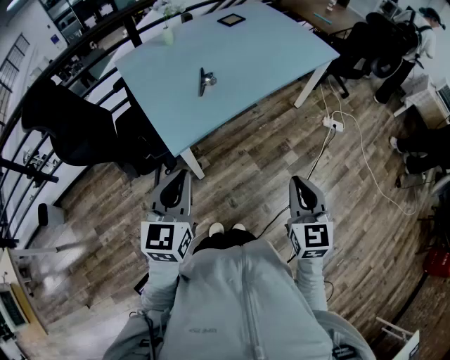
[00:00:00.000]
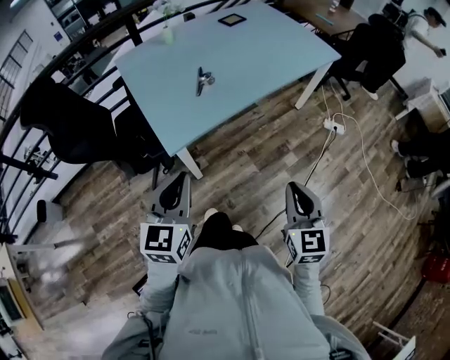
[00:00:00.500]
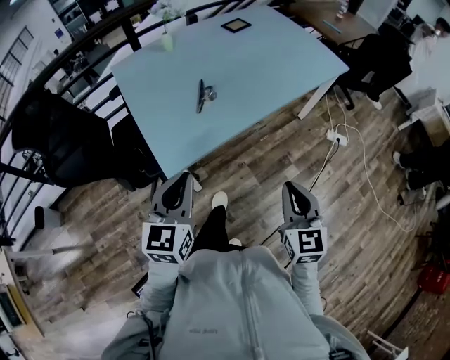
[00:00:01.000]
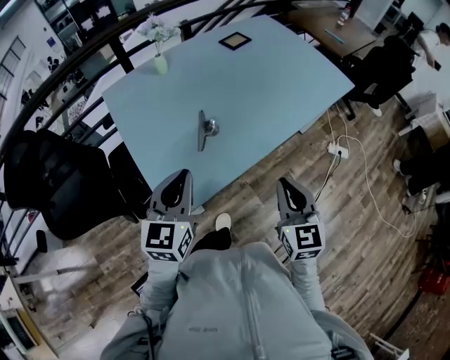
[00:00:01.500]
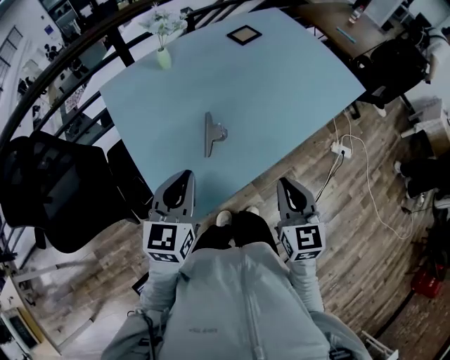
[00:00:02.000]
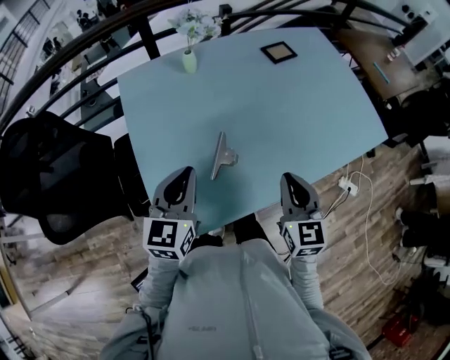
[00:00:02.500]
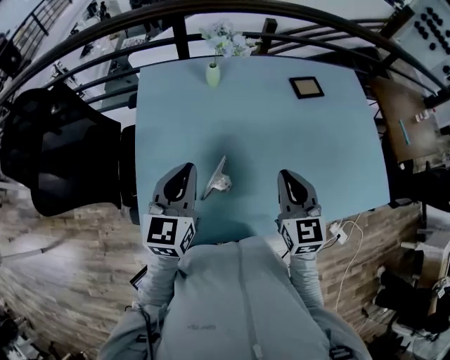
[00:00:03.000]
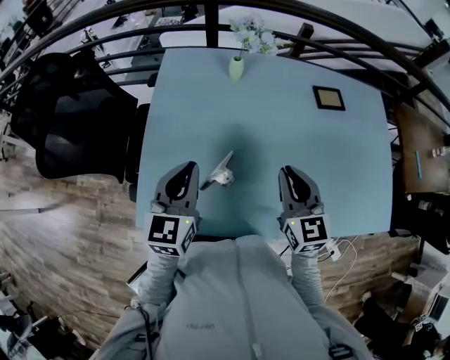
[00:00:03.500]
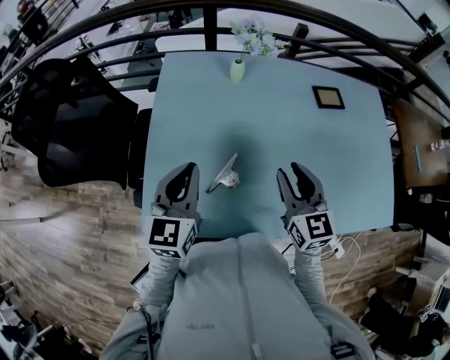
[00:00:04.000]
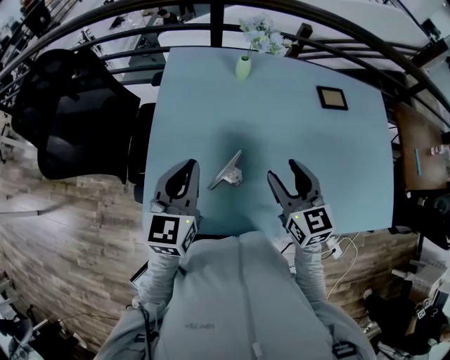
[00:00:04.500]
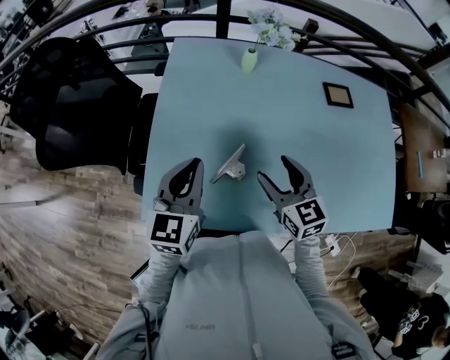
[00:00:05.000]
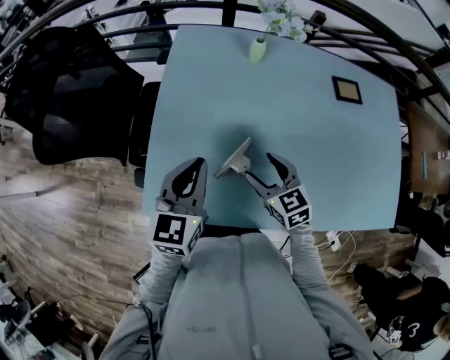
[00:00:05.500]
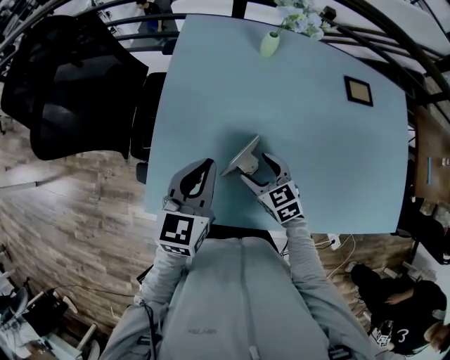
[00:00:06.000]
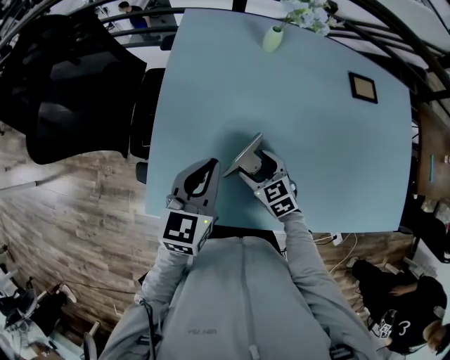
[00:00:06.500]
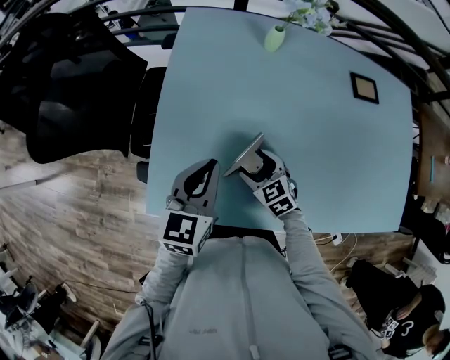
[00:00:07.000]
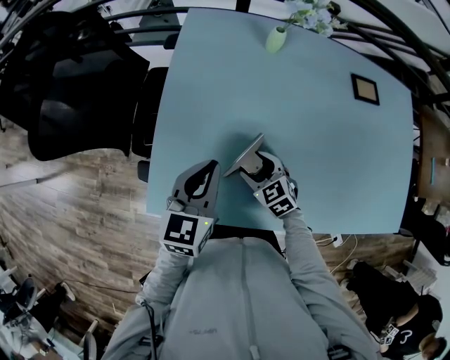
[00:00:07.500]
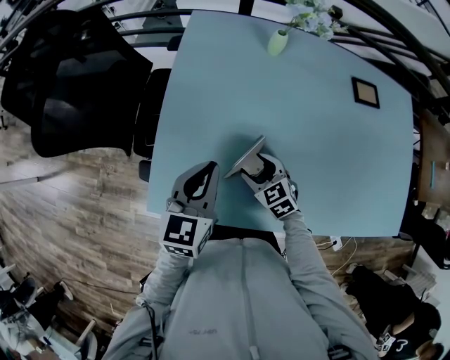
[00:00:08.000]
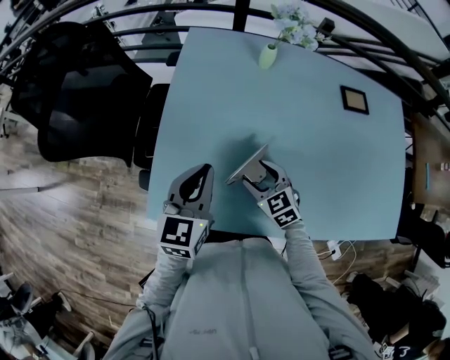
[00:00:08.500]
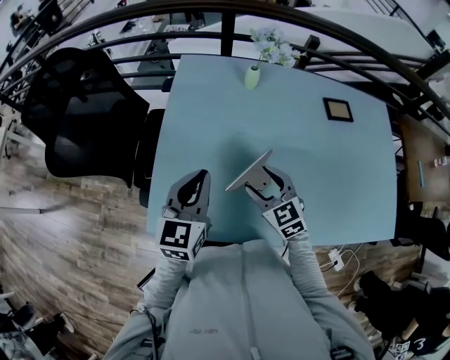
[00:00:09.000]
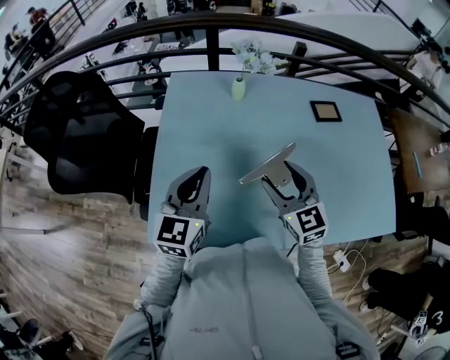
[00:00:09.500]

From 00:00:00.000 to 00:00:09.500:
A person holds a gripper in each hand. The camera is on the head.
From 00:00:00.000 to 00:00:02.000: The two grippers go approximately 30 cm forward.
From 00:00:02.000 to 00:00:04.000: The right gripper changes place by about 25 cm, and swivels roughly 40 degrees. The left gripper changes place by about 10 cm, and changes its angle by roughly 40 degrees.
From 00:00:04.000 to 00:00:05.500: The right gripper is displaced downward and to the left by about 15 cm, swivels roughly 30 degrees, and opens its fingers.
From 00:00:05.500 to 00:00:07.500: The right gripper heads downward, covering some 10 cm, while the left gripper is displaced downward by some 5 cm.
From 00:00:07.500 to 00:00:09.500: The left gripper is displaced upward by approximately 10 cm. The right gripper shifts some 25 cm upward and to the right, and swivels some 30 degrees.

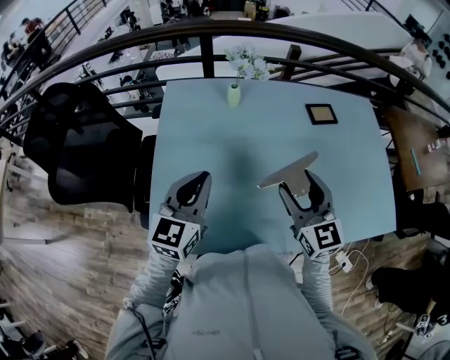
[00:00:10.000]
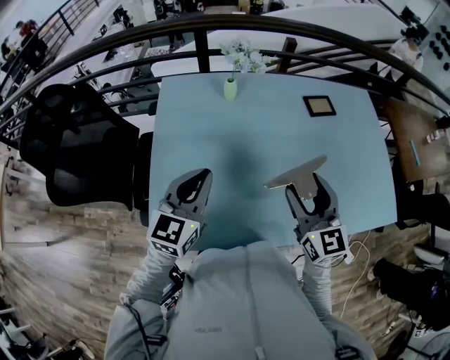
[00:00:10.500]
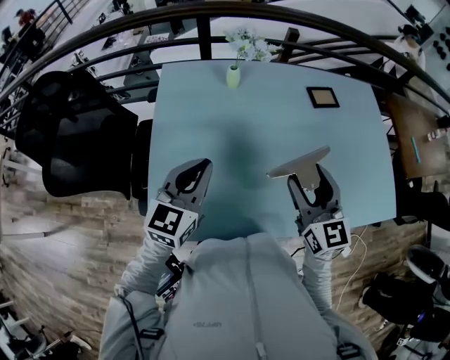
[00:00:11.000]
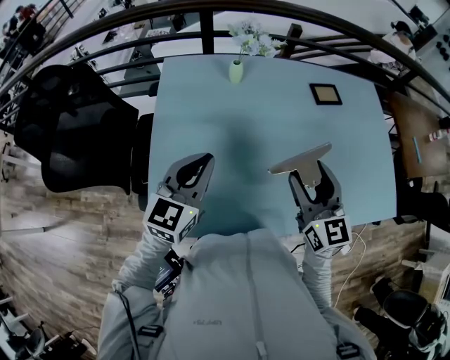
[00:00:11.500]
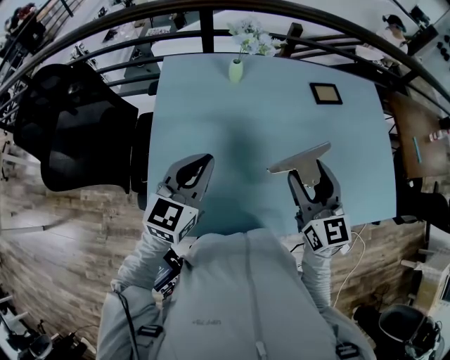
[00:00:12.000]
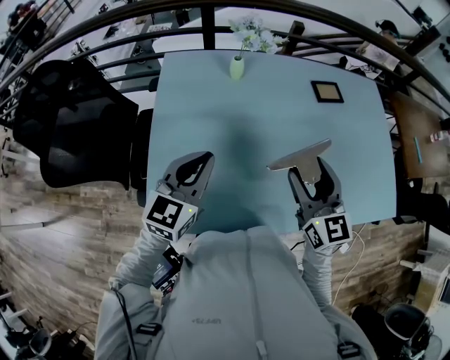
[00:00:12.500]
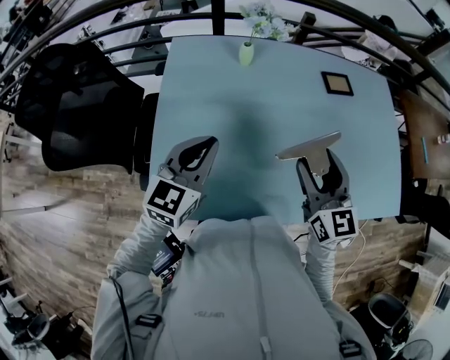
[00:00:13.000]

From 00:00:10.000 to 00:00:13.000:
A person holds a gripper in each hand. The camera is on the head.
From 00:00:10.000 to 00:00:11.500: The grippers move only a little.
From 00:00:11.500 to 00:00:13.000: The two grippers keep their place.

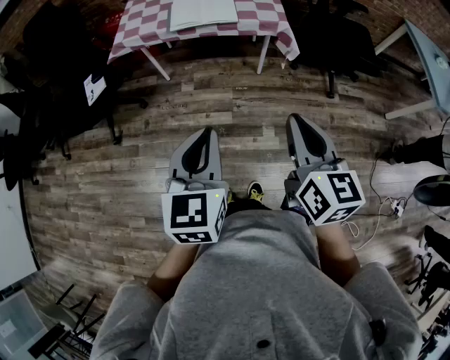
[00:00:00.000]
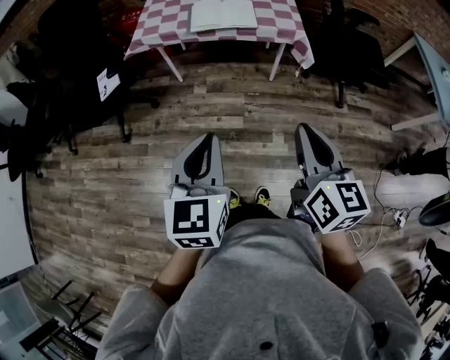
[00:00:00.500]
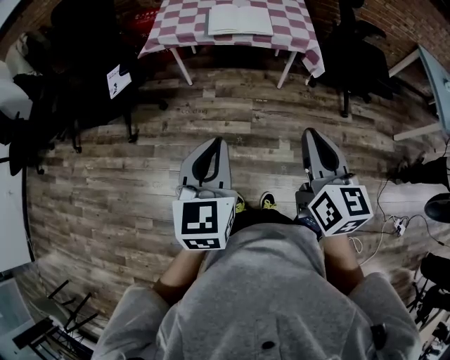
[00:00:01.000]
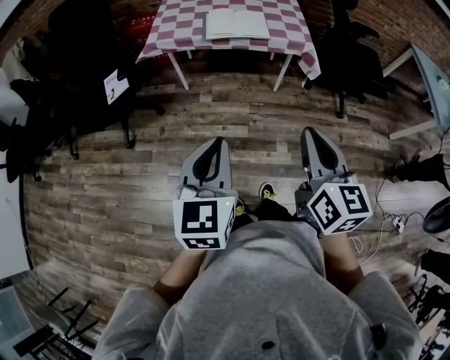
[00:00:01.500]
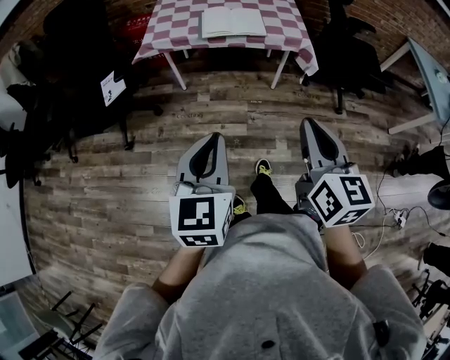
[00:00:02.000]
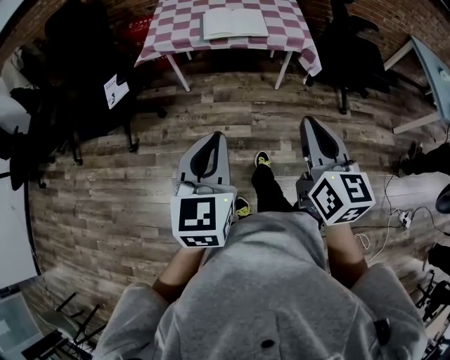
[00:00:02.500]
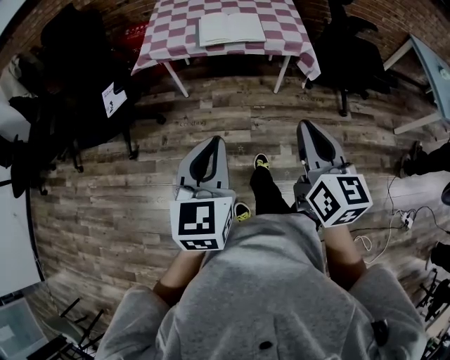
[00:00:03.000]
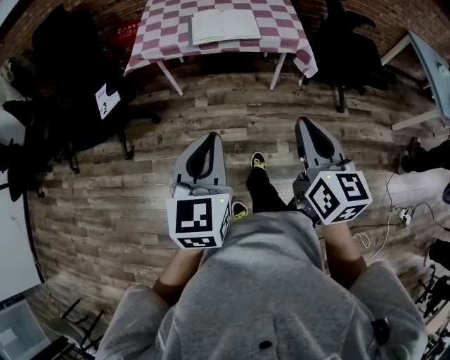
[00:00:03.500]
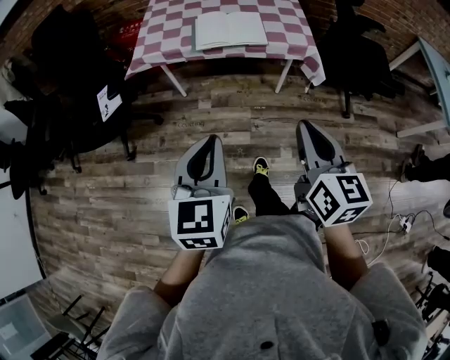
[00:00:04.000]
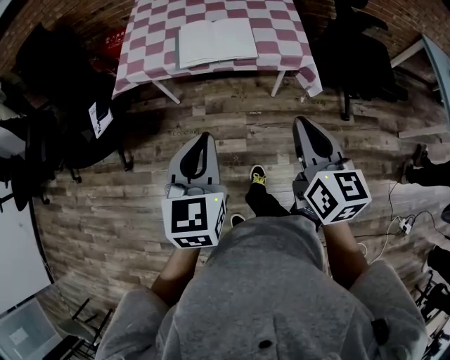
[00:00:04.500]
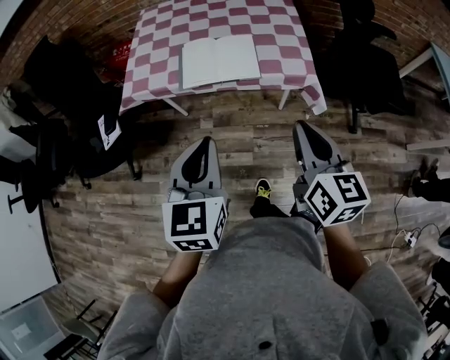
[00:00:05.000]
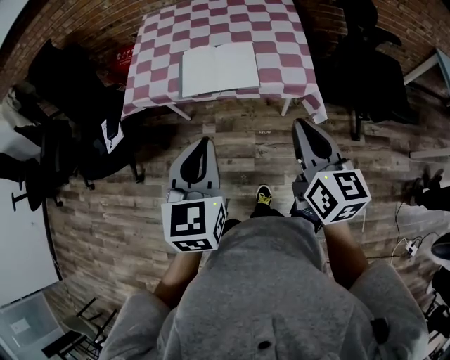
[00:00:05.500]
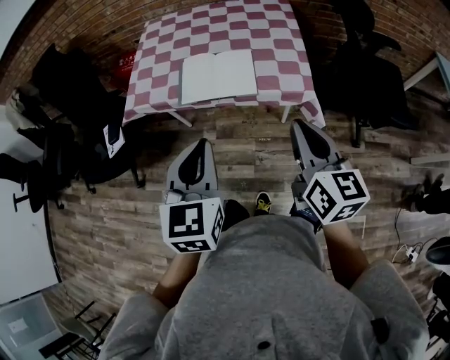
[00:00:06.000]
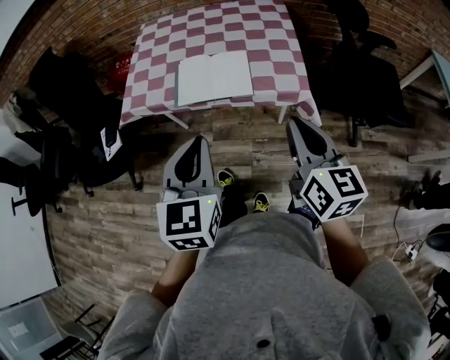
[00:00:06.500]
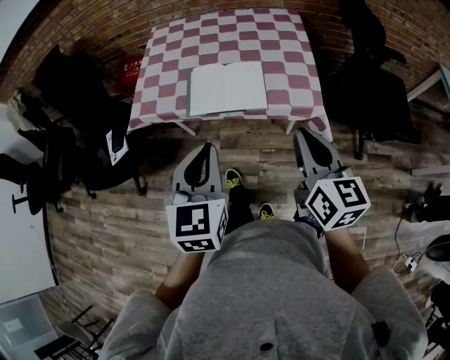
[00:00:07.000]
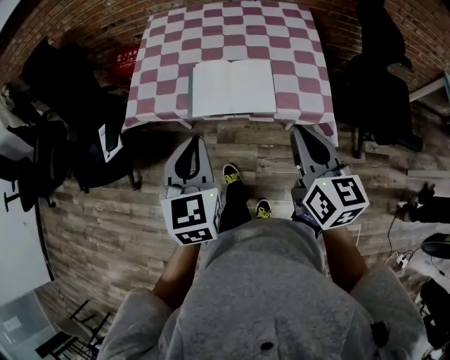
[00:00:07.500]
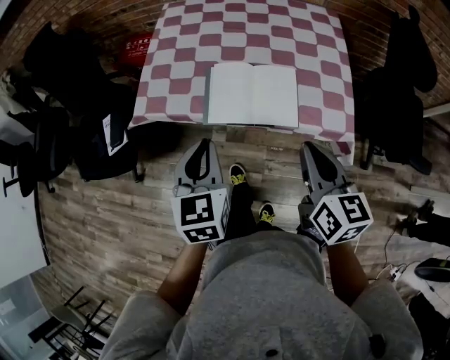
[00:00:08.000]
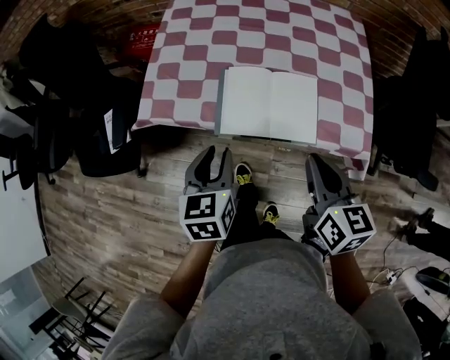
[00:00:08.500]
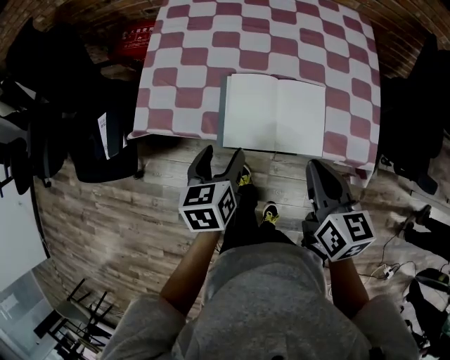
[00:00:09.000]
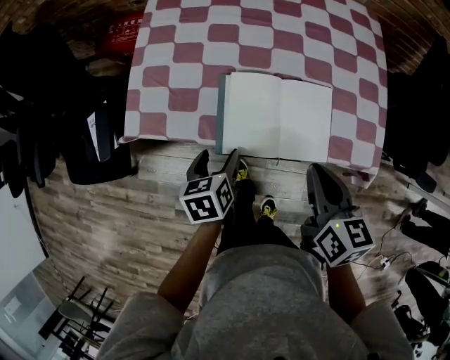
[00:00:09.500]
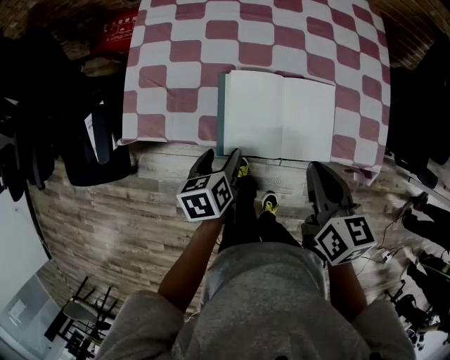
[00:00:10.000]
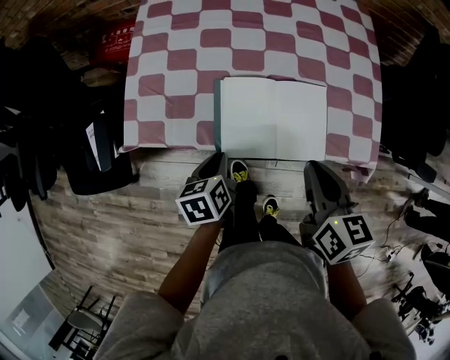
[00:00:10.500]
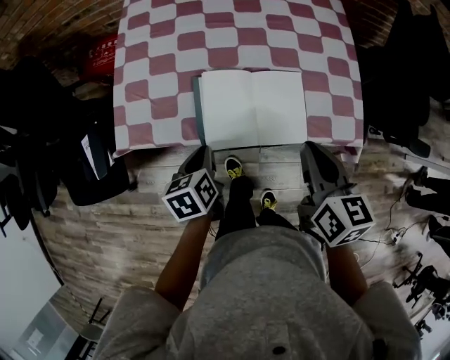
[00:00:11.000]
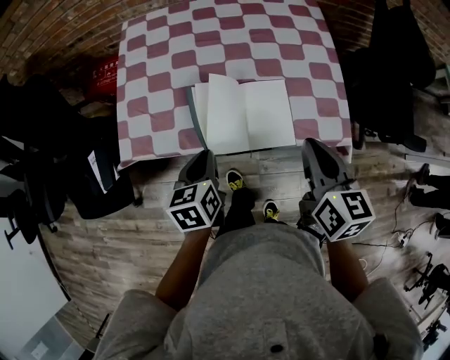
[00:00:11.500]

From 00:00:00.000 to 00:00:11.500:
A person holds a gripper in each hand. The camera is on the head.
From 00:00:00.000 to 00:00:02.000: Both grippers move to the left, about 10 cm.
From 00:00:02.000 to 00:00:04.000: Both grippers travel together forward, about 10 cm.
From 00:00:04.000 to 00:00:06.000: Both grippers travel together forward and to the right, approximately 25 cm.
From 00:00:06.000 to 00:00:07.500: Both grippers move forward and to the left, some 10 cm.
From 00:00:07.500 to 00:00:09.500: The left gripper heads downward and forward, covering roughly 30 cm, turns by roughly 40 degrees, and opens its fingers. The right gripper moves forward, downward and to the left, some 20 cm, and changes its angle by roughly 20 degrees.
From 00:00:09.500 to 00:00:11.500: The left gripper is displaced upward by about 10 cm, and closes up. Meanwhile the right gripper is displaced upward and to the right by some 10 cm.

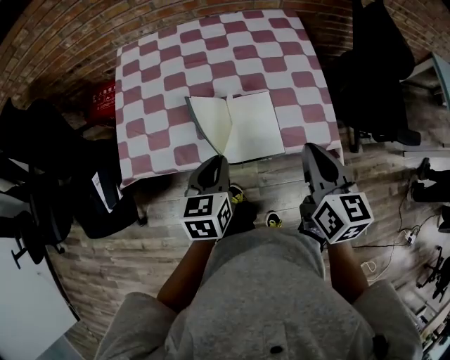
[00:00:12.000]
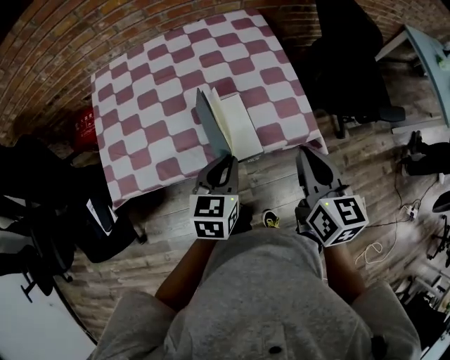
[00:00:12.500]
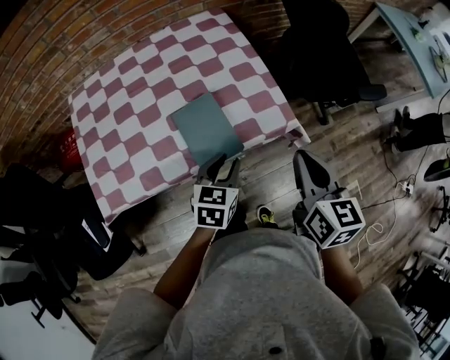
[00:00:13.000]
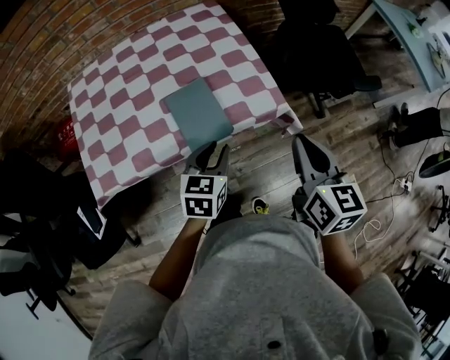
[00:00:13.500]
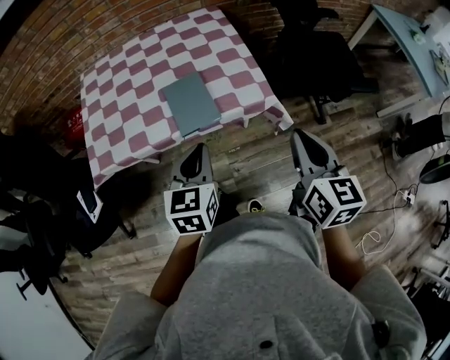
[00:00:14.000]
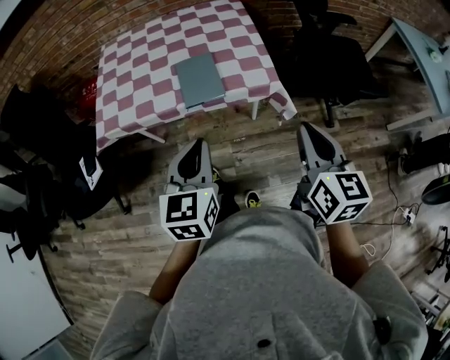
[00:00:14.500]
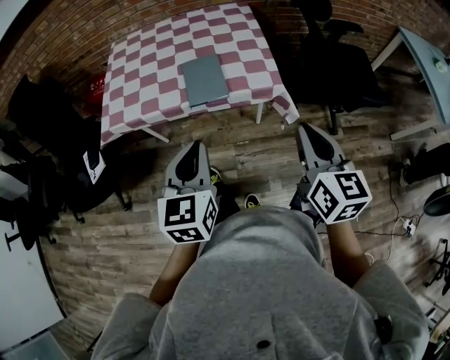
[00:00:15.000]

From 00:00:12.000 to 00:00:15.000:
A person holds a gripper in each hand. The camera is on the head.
From 00:00:12.000 to 00:00:13.500: The left gripper moves to the right, approximately 15 cm, and changes its angle by about 30 degrees, while the right gripper moves to the right and backward, some 15 cm.
From 00:00:13.500 to 00:00:15.000: The right gripper goes about 15 cm backward and to the right; the left gripper goes approximately 25 cm backward and upward, and turns by roughly 30 degrees.
